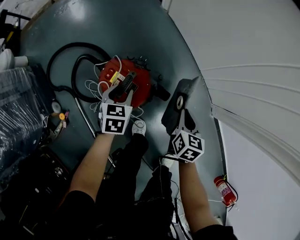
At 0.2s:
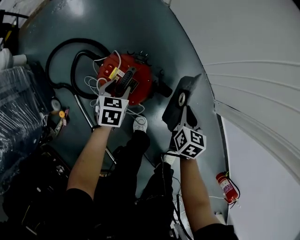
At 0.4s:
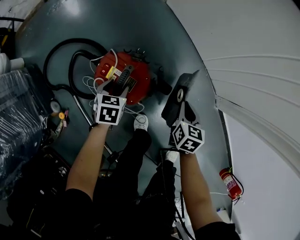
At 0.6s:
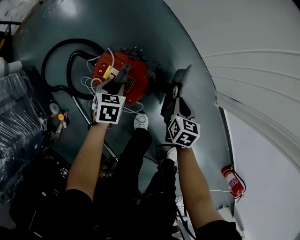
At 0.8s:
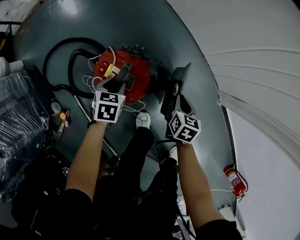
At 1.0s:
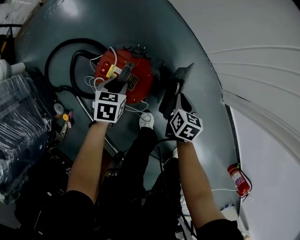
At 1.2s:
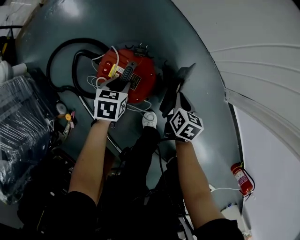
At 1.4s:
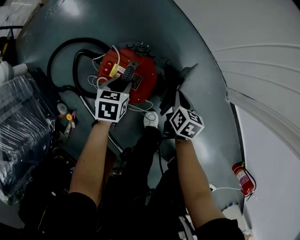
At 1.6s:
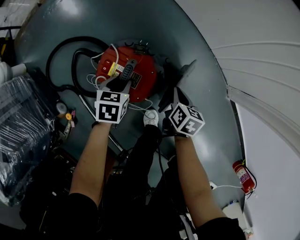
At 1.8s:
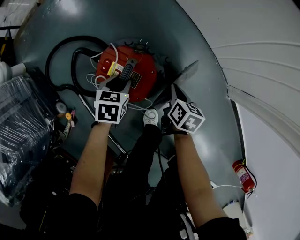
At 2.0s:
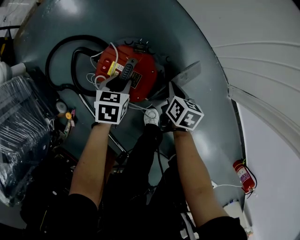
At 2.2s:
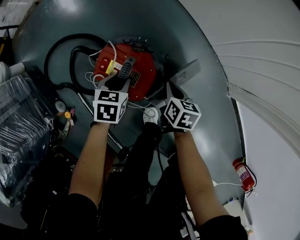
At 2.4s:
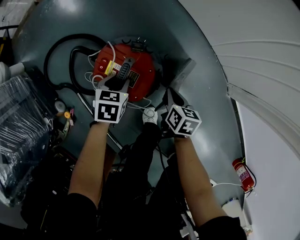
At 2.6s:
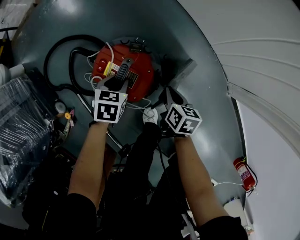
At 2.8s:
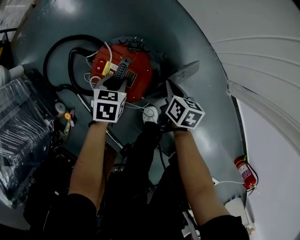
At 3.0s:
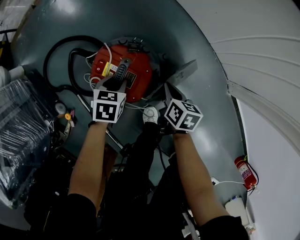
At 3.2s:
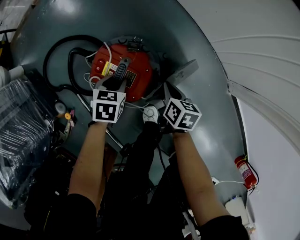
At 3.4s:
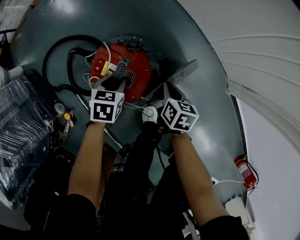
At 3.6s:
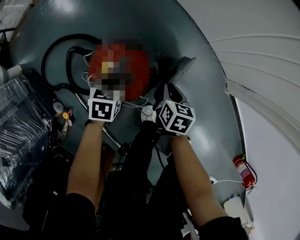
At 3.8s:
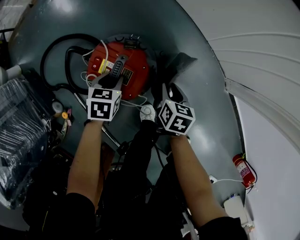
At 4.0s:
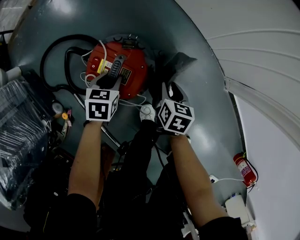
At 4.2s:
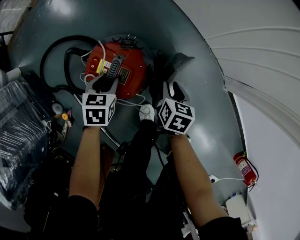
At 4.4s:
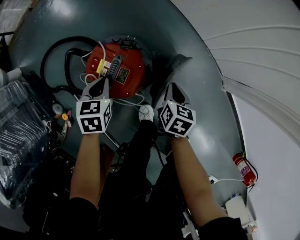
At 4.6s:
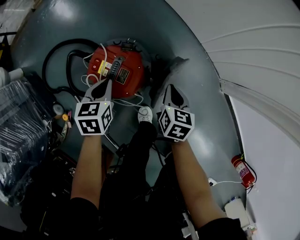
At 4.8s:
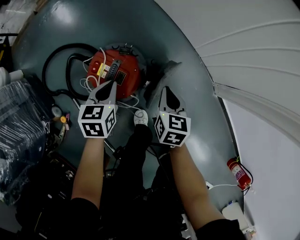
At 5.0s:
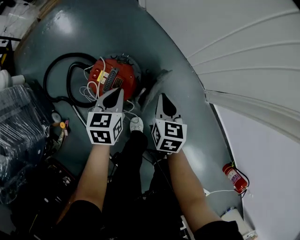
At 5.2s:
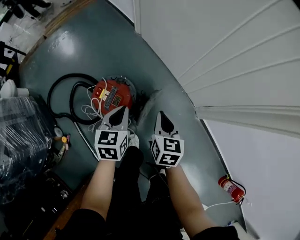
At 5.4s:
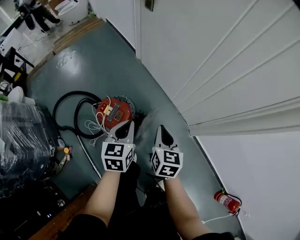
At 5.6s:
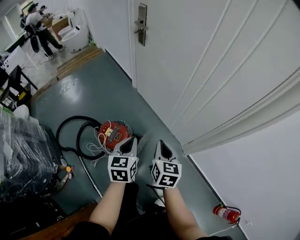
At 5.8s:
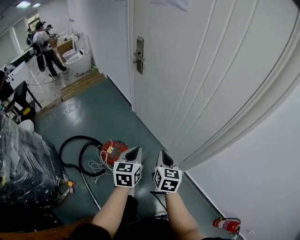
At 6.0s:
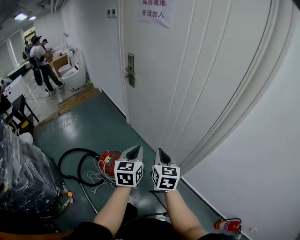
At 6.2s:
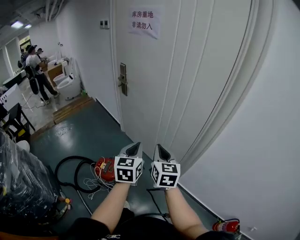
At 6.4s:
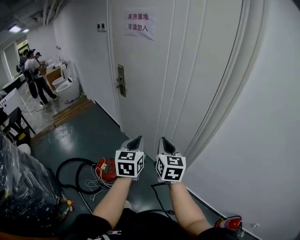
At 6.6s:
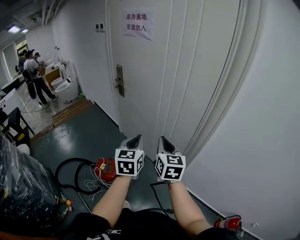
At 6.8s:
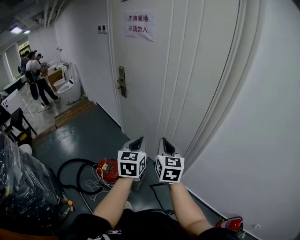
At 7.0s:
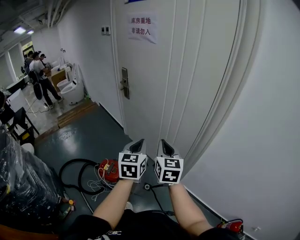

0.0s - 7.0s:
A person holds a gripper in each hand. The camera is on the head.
0.0s - 1.4s: The right gripper travels downward and to the left by roughly 15 cm. The left gripper heads downward, covering roughly 10 cm.
1.4s - 2.8s: There are only small adjustments of the grippers.
2.8s - 4.2s: The right gripper opens up.
4.2s - 5.6s: The left gripper heads upward and to the right, covering some 50 cm, tilts its fingers approximately 30 degrees upward, and closes. The right gripper goes some 50 cm upward, rotates roughly 30 degrees, and closes its fingers.
5.6s - 7.0s: Both grippers travel together upward and to the right, some 25 cm. The right gripper turns by about 20 degrees.

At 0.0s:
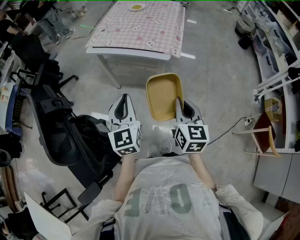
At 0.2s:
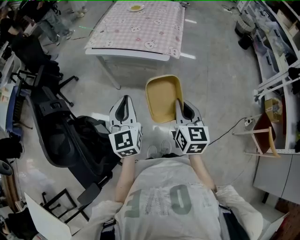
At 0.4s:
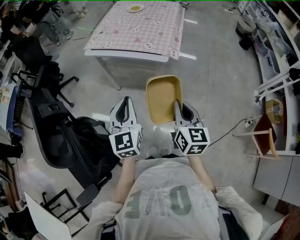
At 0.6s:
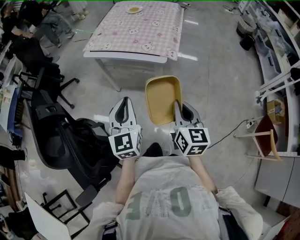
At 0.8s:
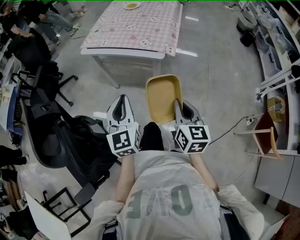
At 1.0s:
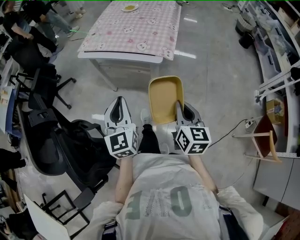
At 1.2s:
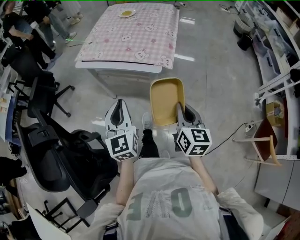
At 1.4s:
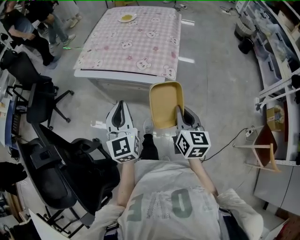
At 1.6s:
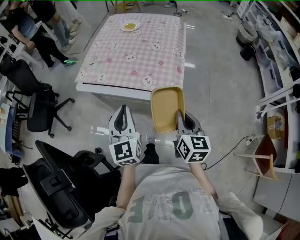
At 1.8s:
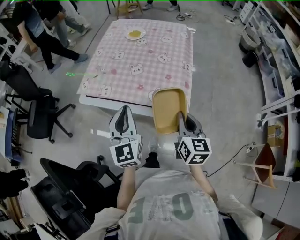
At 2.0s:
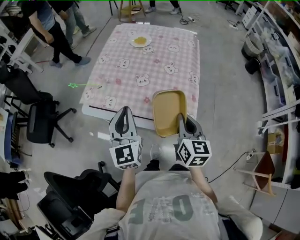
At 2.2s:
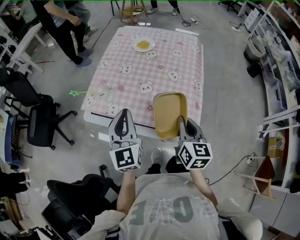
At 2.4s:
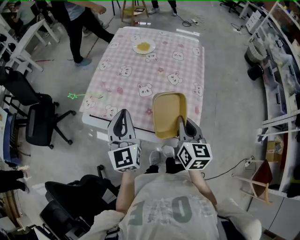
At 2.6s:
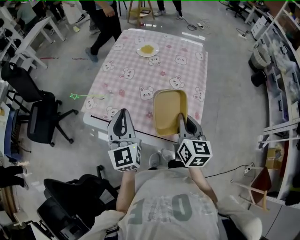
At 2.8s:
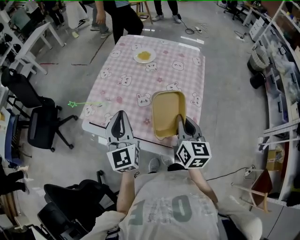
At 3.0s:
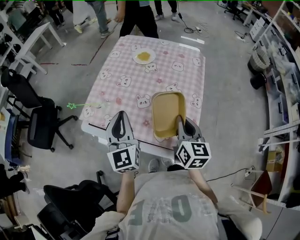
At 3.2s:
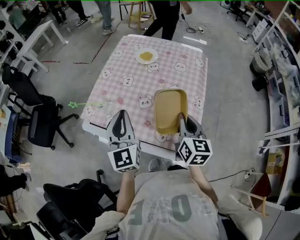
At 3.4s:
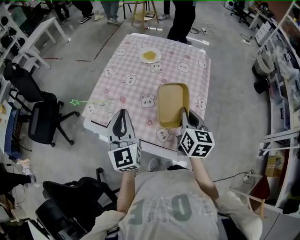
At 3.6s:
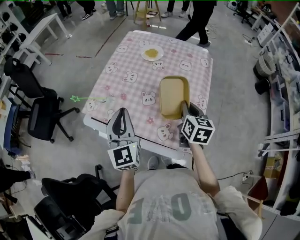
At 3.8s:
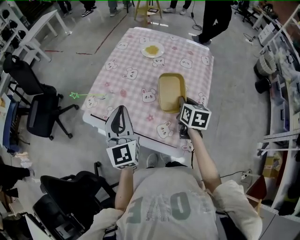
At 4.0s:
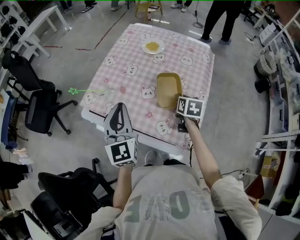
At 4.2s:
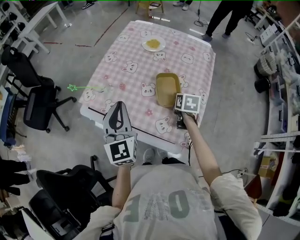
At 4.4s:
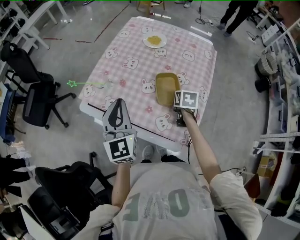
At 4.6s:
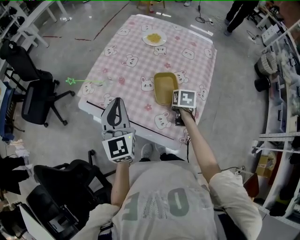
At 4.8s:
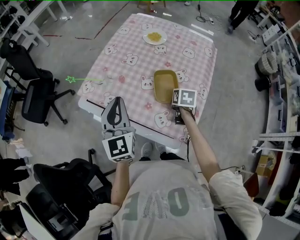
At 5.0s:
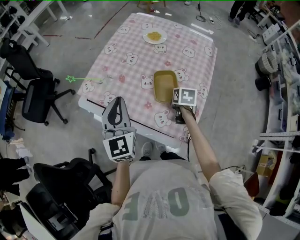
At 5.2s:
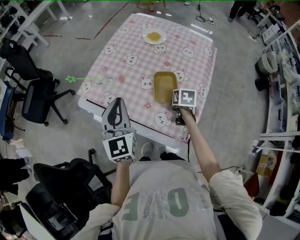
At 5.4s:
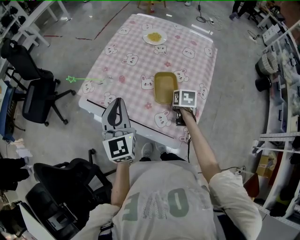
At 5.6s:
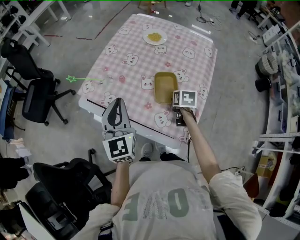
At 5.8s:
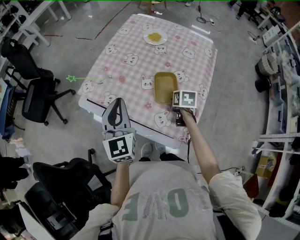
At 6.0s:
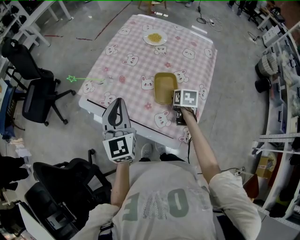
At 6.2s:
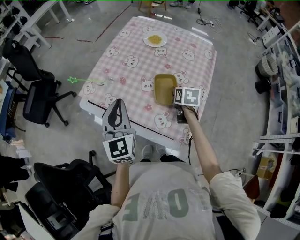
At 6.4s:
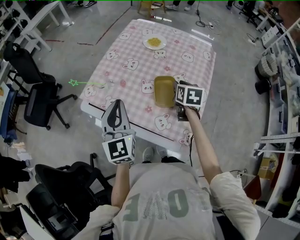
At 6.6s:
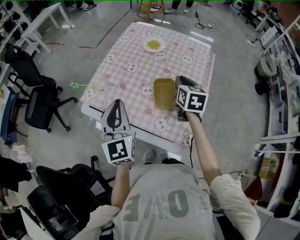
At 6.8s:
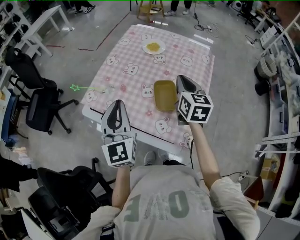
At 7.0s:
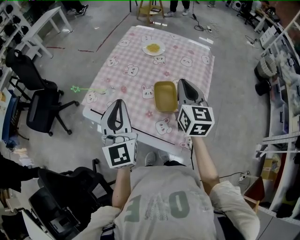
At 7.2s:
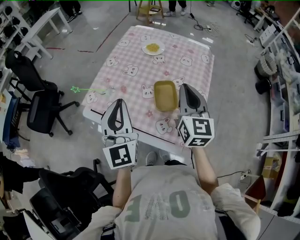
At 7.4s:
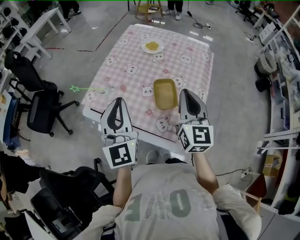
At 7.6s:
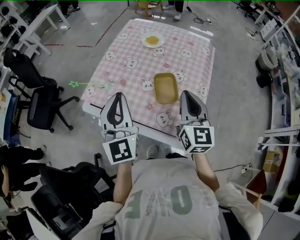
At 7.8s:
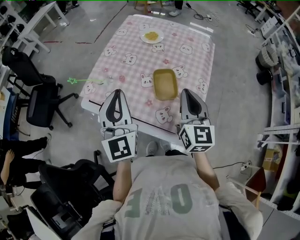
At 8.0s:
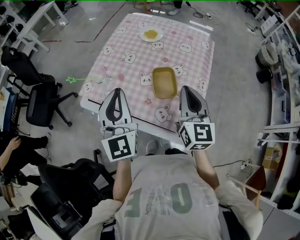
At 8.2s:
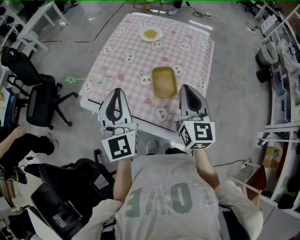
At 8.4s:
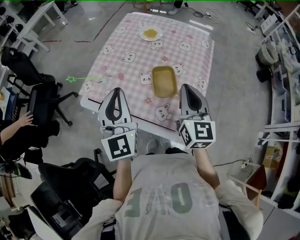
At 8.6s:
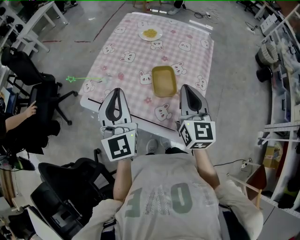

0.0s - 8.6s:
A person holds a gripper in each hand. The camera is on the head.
0.0s - 1.4s: The right gripper is displaced forward and to the right by some 15 cm, while the left gripper travels forward by some 15 cm.
1.4s - 2.8s: Both grippers travel together forward, approximately 35 cm.
2.8s - 4.4s: The right gripper travels downward and forward by roughly 20 cm, and tilts its fingers about 40 degrees downward.
4.4s - 5.8s: The right gripper opens.
5.8s - 7.2s: The left gripper goes about 10 cm upward, while the right gripper travels upward by approximately 25 cm, points its fingers approximately 50 degrees further upward, and closes up.
7.2s - 8.6s: The right gripper changes place by some 5 cm.

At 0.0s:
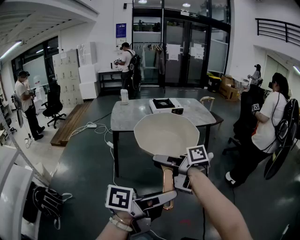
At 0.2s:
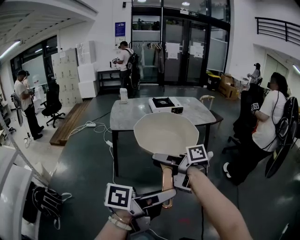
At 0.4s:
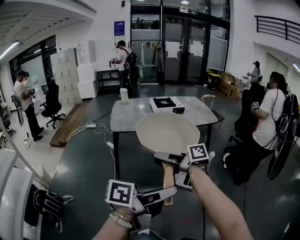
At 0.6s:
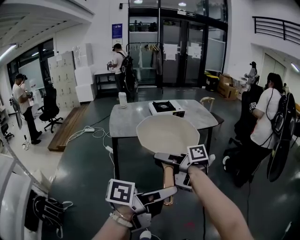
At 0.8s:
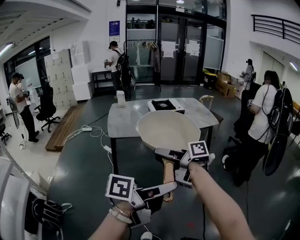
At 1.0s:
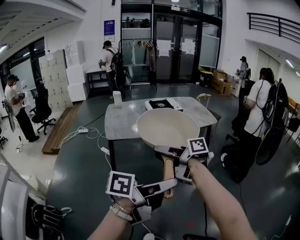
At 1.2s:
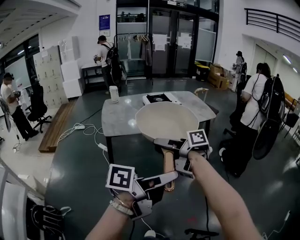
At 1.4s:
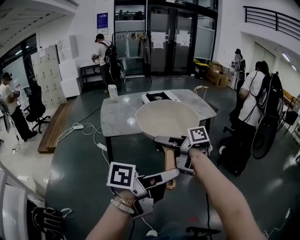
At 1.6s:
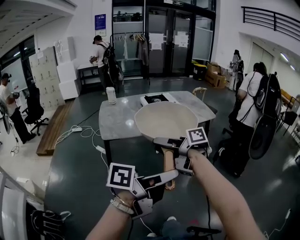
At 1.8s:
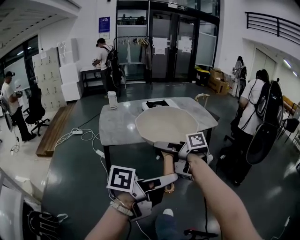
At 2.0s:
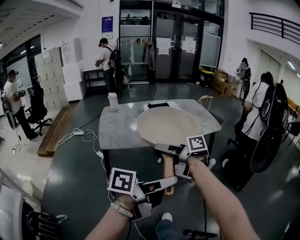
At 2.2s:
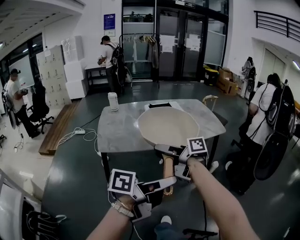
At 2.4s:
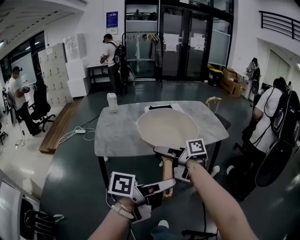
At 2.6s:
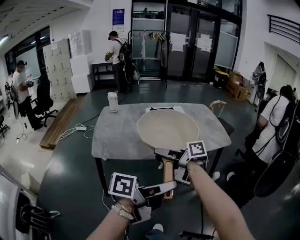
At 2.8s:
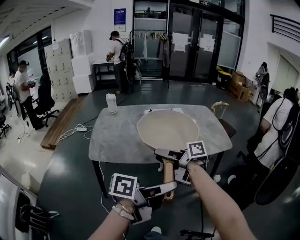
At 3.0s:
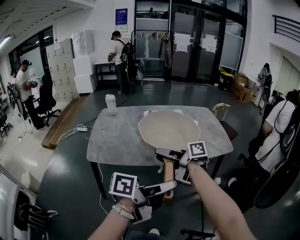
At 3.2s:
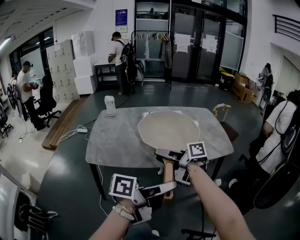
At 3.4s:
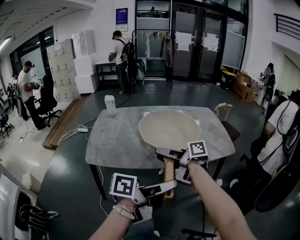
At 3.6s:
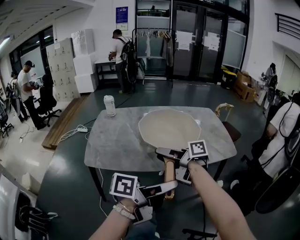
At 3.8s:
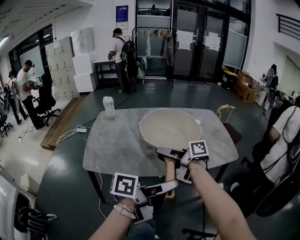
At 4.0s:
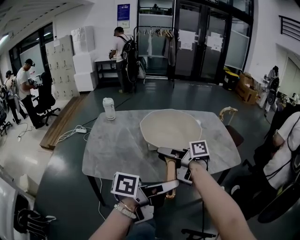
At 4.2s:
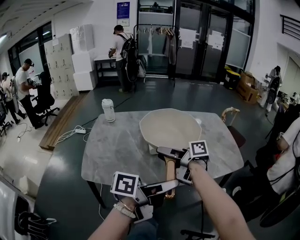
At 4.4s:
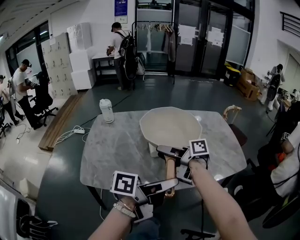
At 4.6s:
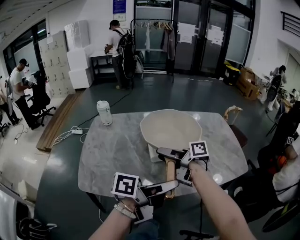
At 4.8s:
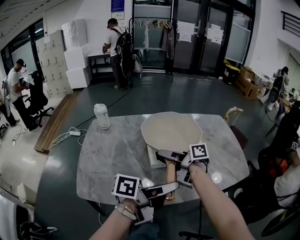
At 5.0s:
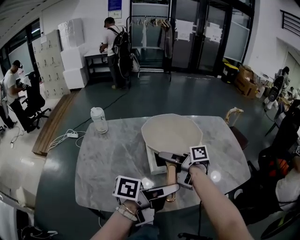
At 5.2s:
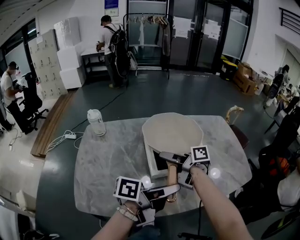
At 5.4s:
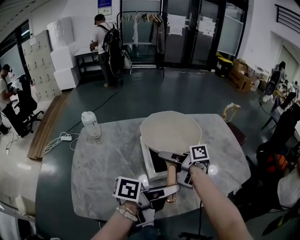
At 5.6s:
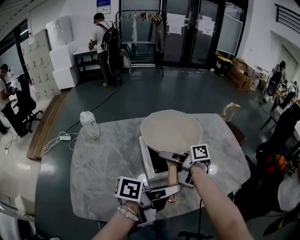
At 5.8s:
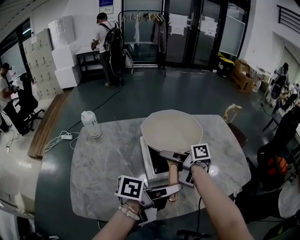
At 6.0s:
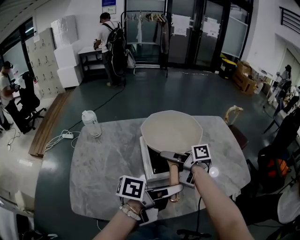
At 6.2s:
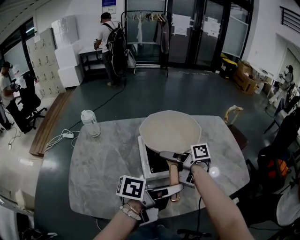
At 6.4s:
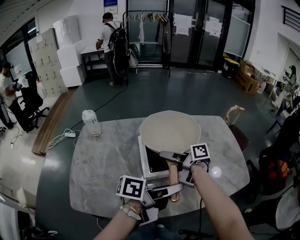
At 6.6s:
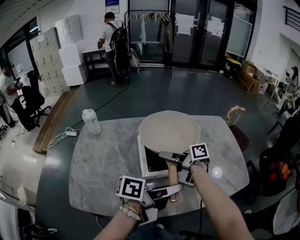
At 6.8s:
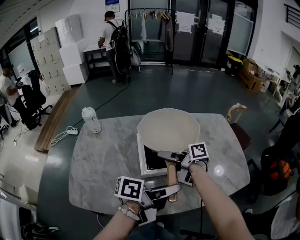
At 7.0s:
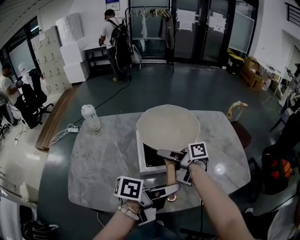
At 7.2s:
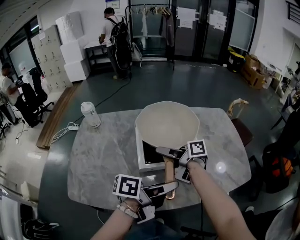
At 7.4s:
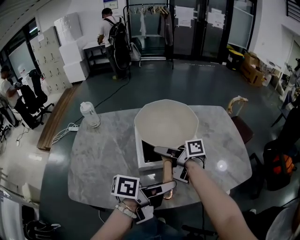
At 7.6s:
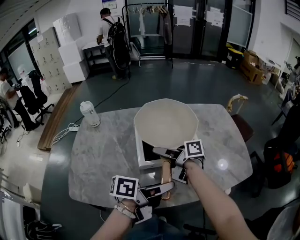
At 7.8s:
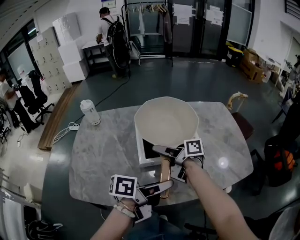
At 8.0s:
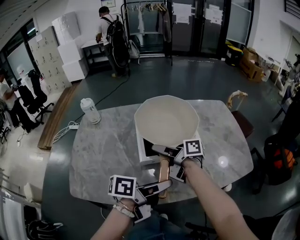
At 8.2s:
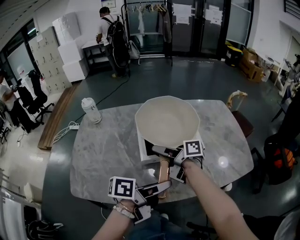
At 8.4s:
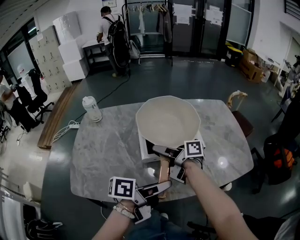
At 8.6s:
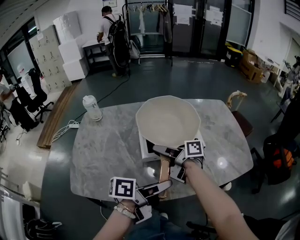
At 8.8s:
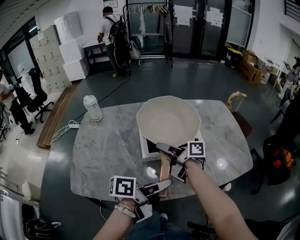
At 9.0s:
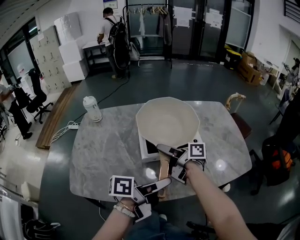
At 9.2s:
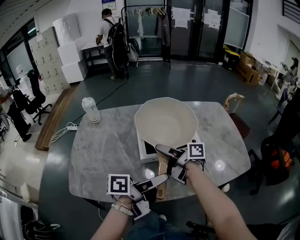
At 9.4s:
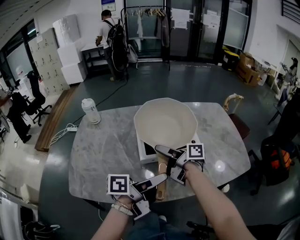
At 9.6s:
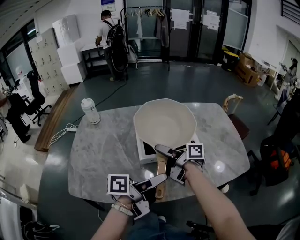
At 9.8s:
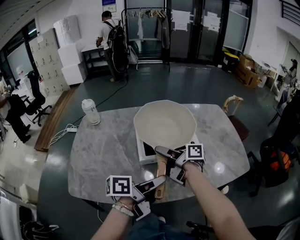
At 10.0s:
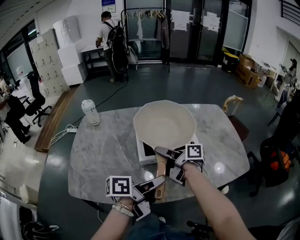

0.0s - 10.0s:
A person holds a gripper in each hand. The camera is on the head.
0.0s - 1.4s: The right gripper shifts by some 20 cm, while the left gripper ends up roughly 20 cm from where it was.
1.4s - 2.8s: The right gripper moves some 25 cm; the left gripper changes place by roughly 30 cm.
2.8s - 4.2s: The left gripper changes place by about 15 cm. The right gripper changes place by roughly 15 cm.
4.2s - 5.8s: The right gripper ends up approximately 20 cm from where it was. Meanwhile the left gripper ends up approximately 20 cm from where it was.
5.8s - 7.2s: The left gripper changes place by some 5 cm.
7.2s - 8.6s: The left gripper shifts by roughly 5 cm.
8.6s - 10.0s: The left gripper opens, then closes once more.
